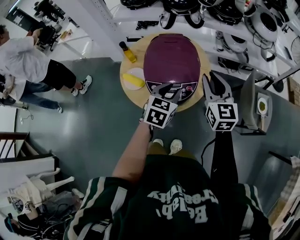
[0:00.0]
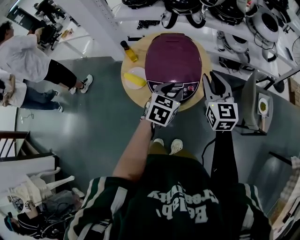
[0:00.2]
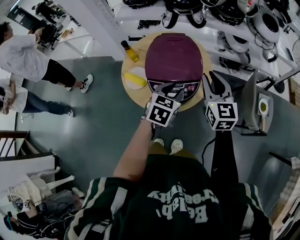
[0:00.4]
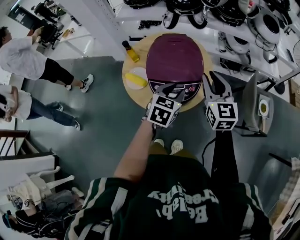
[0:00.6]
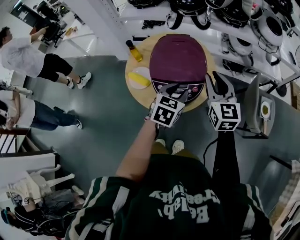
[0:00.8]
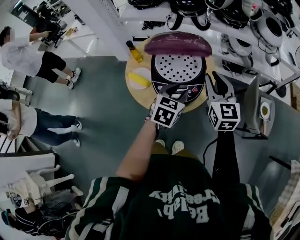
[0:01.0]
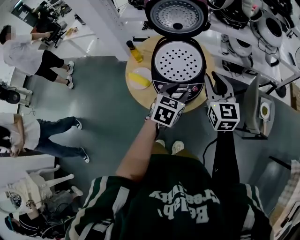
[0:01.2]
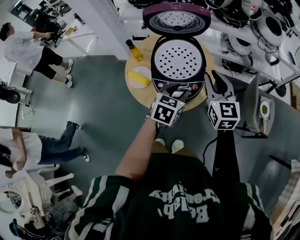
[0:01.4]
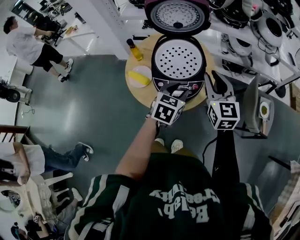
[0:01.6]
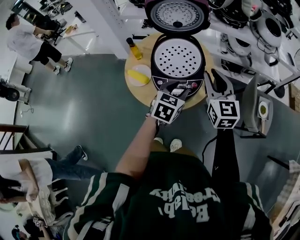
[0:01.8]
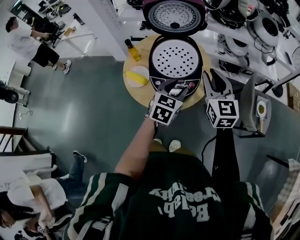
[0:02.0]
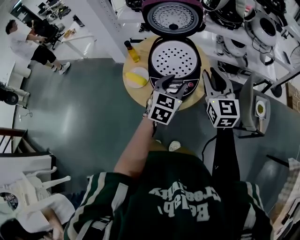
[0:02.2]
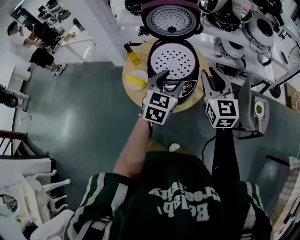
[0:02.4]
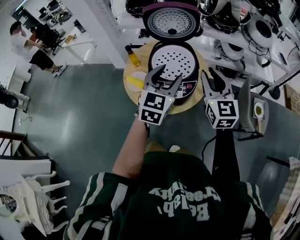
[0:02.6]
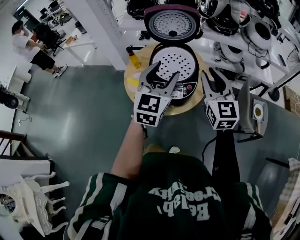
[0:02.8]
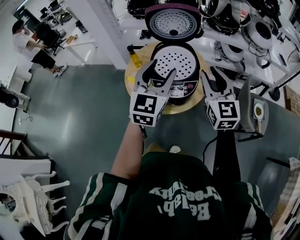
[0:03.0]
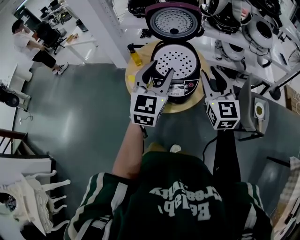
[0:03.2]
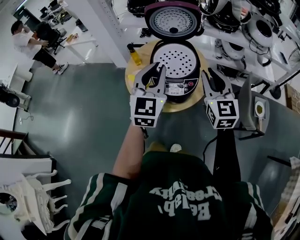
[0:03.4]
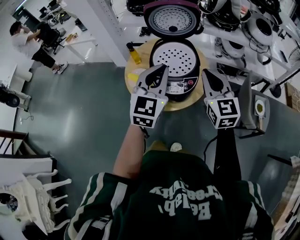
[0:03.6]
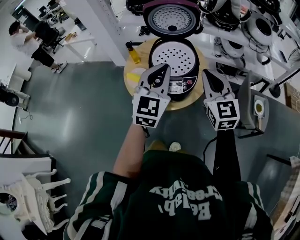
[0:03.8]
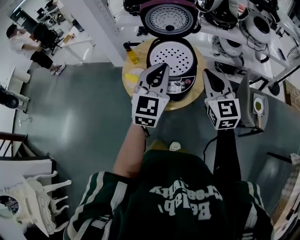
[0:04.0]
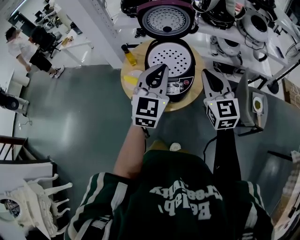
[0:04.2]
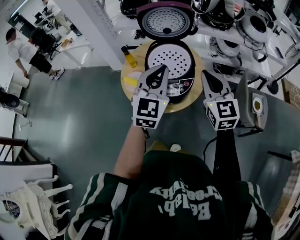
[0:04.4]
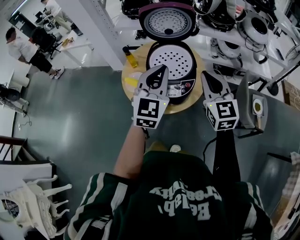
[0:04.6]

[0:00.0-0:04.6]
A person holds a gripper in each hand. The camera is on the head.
0:00.0 to 0:01.6: The grippers move only a little.
0:01.6 to 0:03.0: The right gripper travels upward by about 10 cm, while the left gripper travels upward by approximately 20 cm, and angles its fingers upward, by roughly 30 degrees.
0:03.0 to 0:04.6: The left gripper closes up. Meanwhile the right gripper closes.

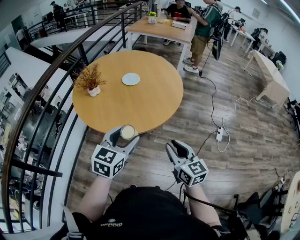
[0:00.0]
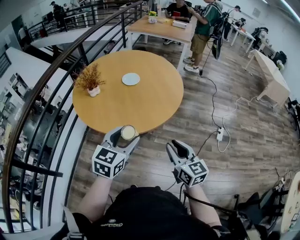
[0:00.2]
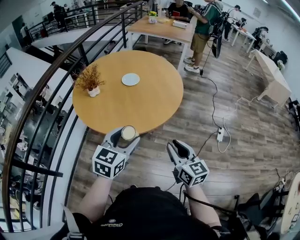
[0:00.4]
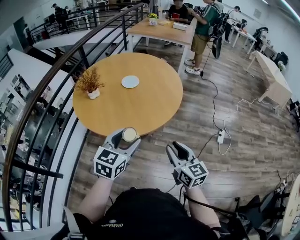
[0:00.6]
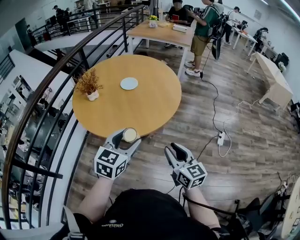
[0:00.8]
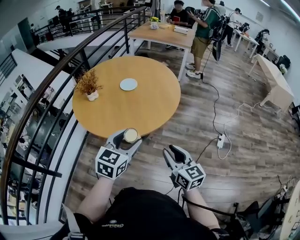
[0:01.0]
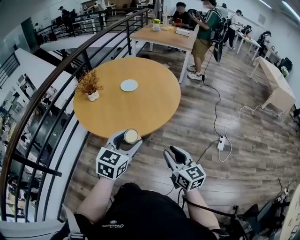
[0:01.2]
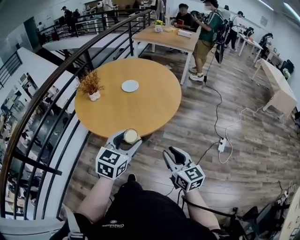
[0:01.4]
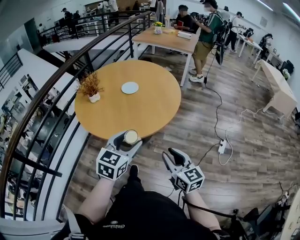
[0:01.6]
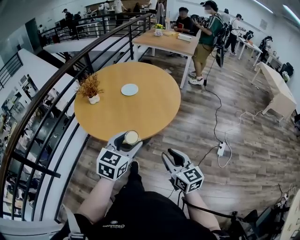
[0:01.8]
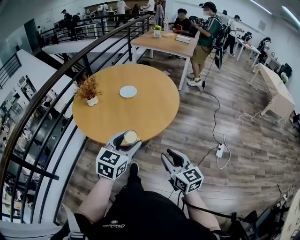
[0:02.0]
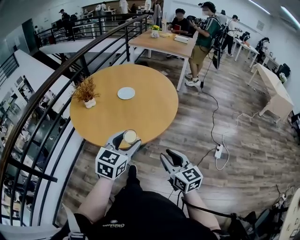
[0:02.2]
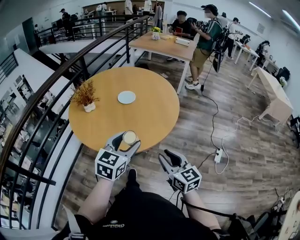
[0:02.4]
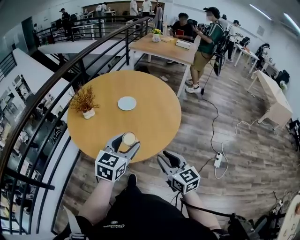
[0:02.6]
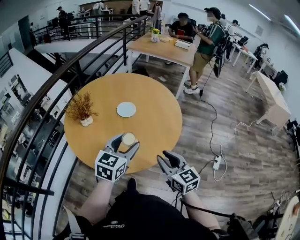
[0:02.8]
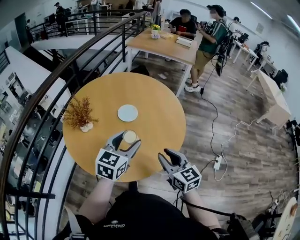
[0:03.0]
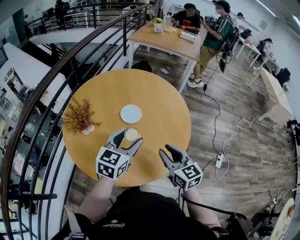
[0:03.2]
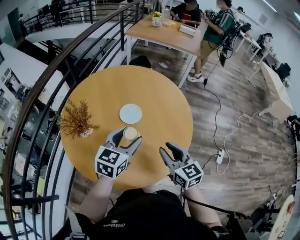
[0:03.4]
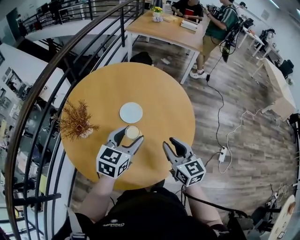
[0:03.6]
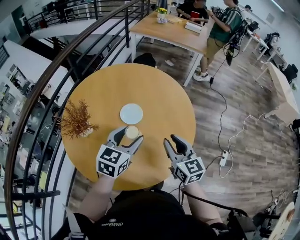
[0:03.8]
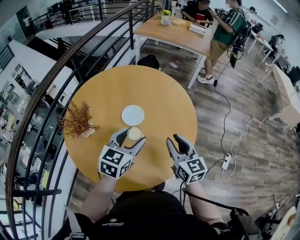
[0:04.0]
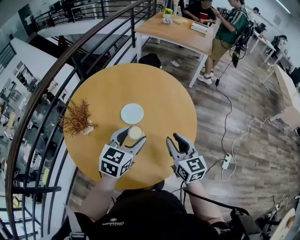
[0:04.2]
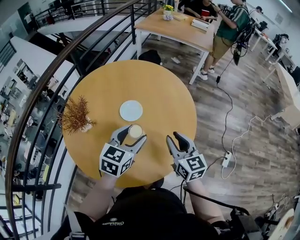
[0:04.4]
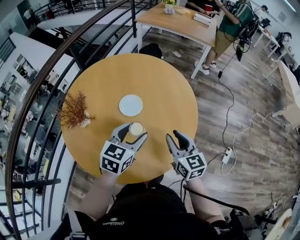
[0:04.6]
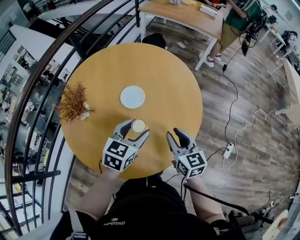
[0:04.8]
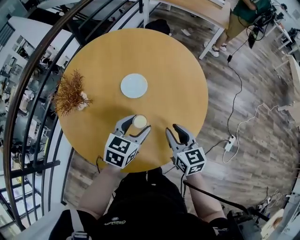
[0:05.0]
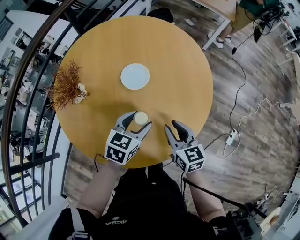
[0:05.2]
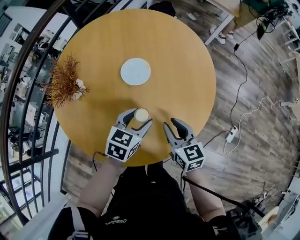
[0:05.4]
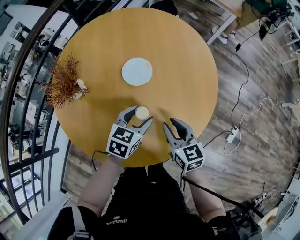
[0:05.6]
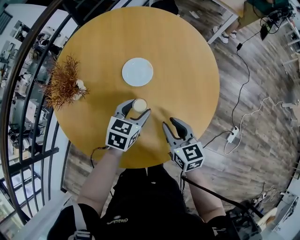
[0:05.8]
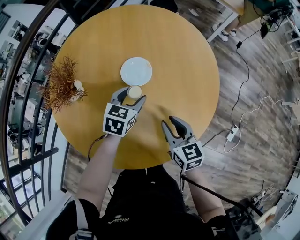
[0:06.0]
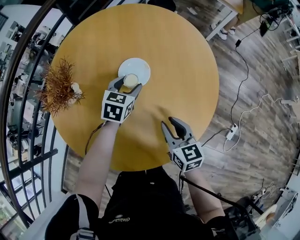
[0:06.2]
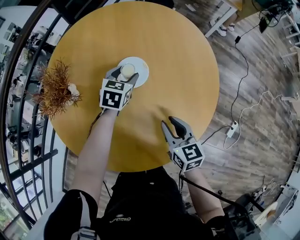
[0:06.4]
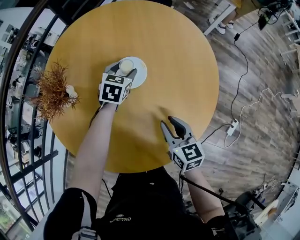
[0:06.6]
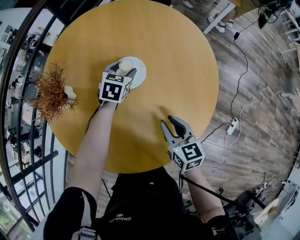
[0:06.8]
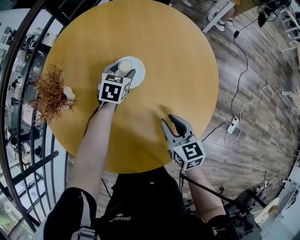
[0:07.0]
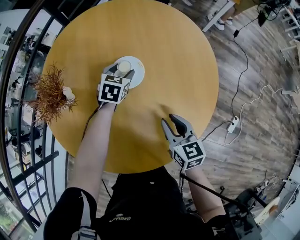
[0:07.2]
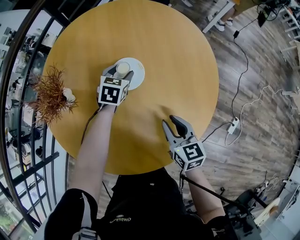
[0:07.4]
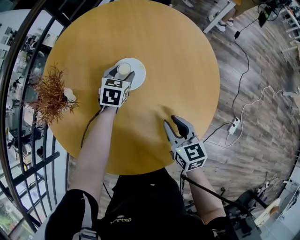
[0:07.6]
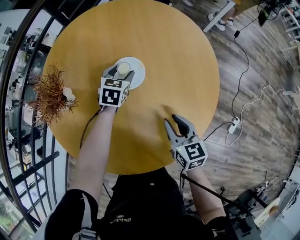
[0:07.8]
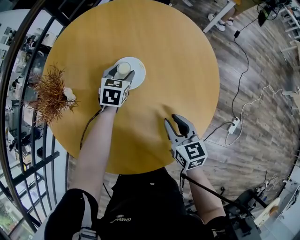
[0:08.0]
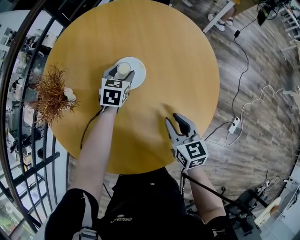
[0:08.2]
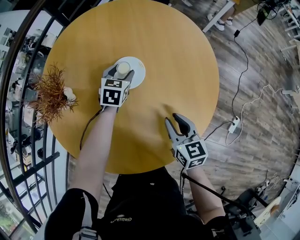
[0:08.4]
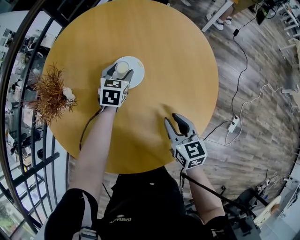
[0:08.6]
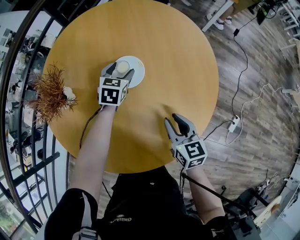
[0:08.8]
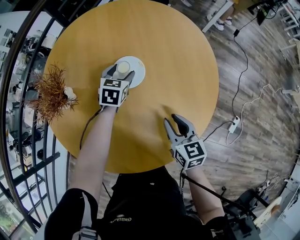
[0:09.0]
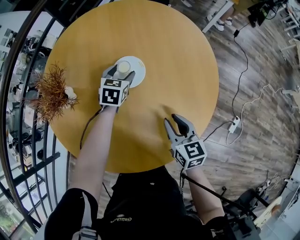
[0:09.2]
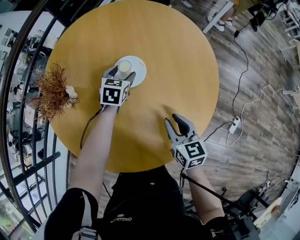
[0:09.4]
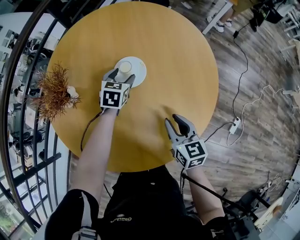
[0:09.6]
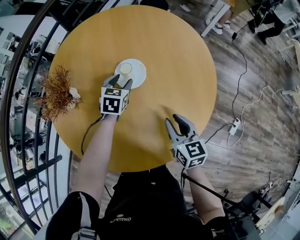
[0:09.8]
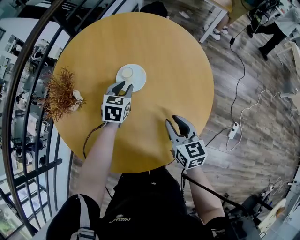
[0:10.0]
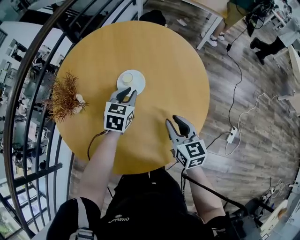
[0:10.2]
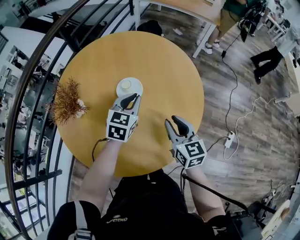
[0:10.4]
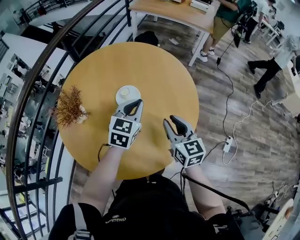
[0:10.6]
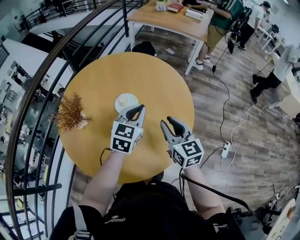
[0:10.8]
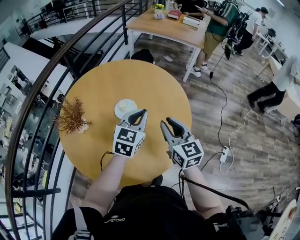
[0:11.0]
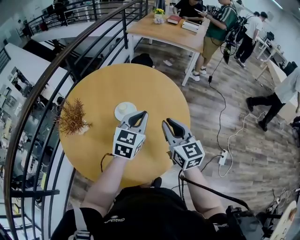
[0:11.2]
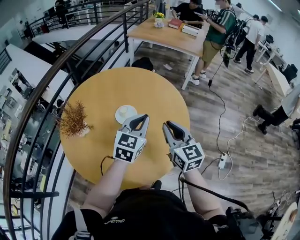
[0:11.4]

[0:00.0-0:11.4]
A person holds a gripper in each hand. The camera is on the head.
0:00.0 to 0:01.4: The grippers both shift to the right by roughly 10 cm.
0:01.4 to 0:02.8: The grippers both shift forward by some 20 cm.
0:02.8 to 0:04.2: The two grippers go some 20 cm forward.
0:04.2 to 0:05.6: The grippers both shift downward by some 15 cm.
0:05.6 to 0:07.2: The left gripper shifts roughly 20 cm forward, while the right gripper changes place by some 5 cm.
0:07.2 to 0:08.6: The grippers move only a little.
0:08.6 to 0:10.0: The left gripper heads backward, covering approximately 5 cm, and closes its fingers.
0:10.0 to 0:11.4: The left gripper shifts roughly 30 cm upward, backward and to the right, turns by about 30 degrees, and closes its fingers; the right gripper goes some 20 cm upward, and swivels roughly 20 degrees.

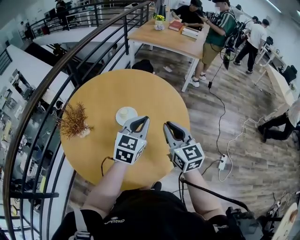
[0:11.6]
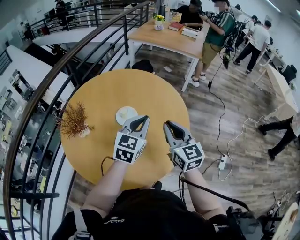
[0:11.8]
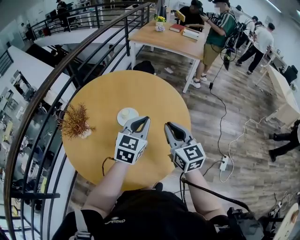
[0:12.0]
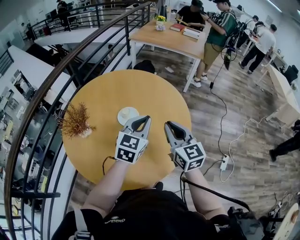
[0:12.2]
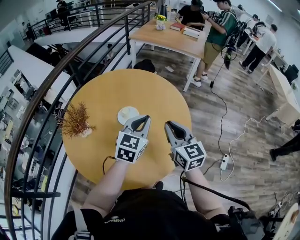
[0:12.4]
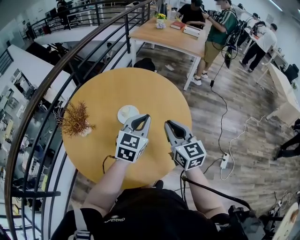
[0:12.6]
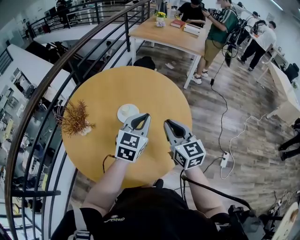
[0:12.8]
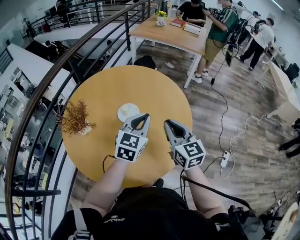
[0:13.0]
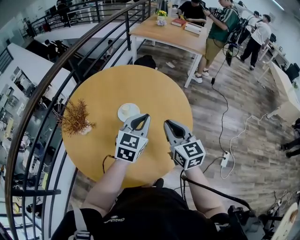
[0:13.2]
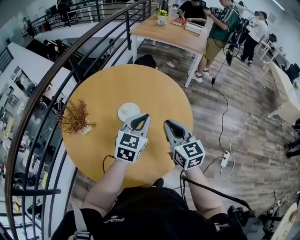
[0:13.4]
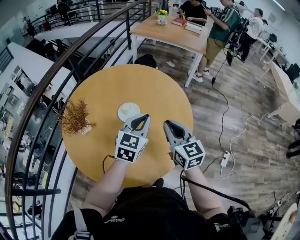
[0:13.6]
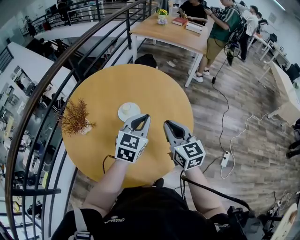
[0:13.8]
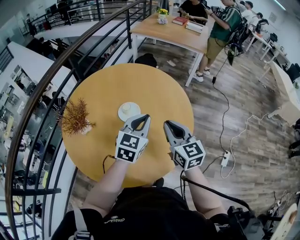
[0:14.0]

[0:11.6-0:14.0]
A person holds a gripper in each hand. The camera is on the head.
0:11.6 to 0:12.8: The two grippers keep their place.
0:12.8 to 0:14.0: There are only small adjustments of the grippers.

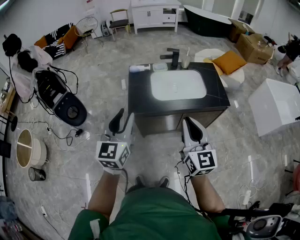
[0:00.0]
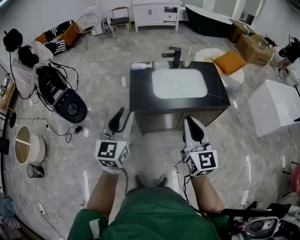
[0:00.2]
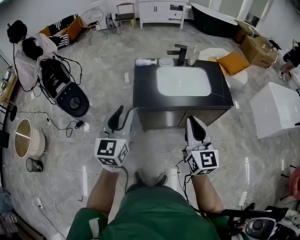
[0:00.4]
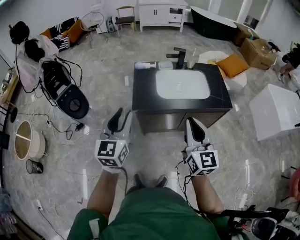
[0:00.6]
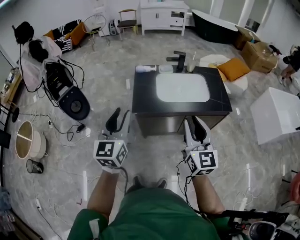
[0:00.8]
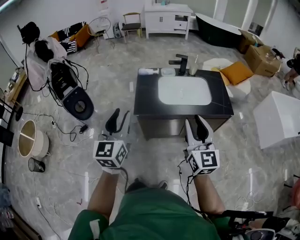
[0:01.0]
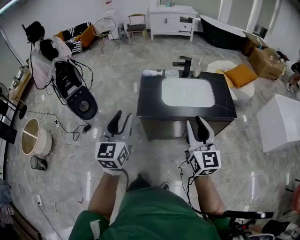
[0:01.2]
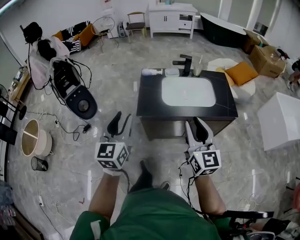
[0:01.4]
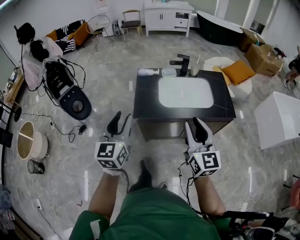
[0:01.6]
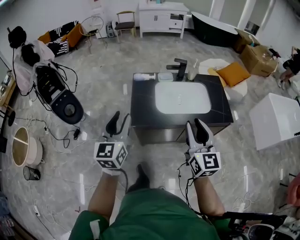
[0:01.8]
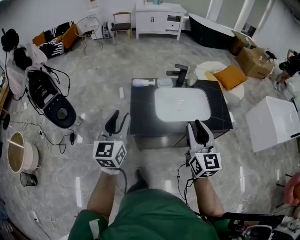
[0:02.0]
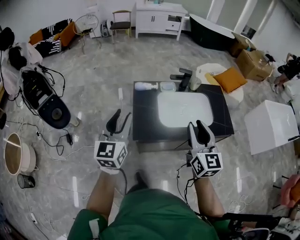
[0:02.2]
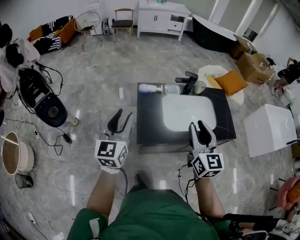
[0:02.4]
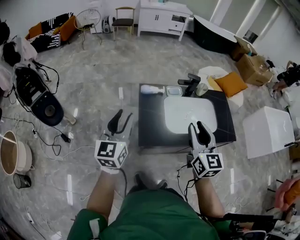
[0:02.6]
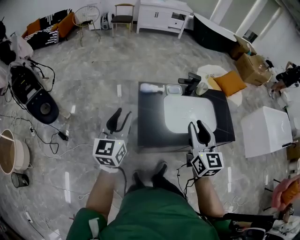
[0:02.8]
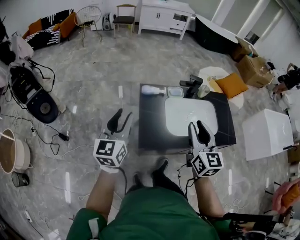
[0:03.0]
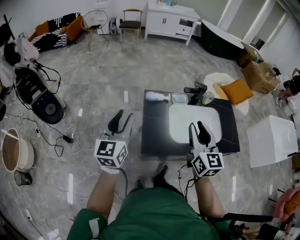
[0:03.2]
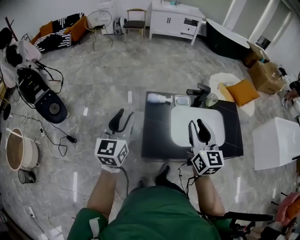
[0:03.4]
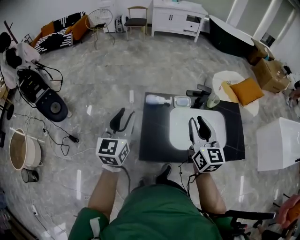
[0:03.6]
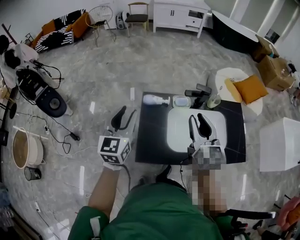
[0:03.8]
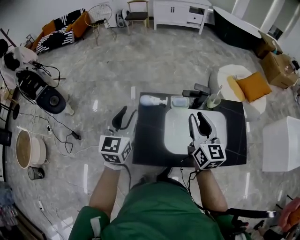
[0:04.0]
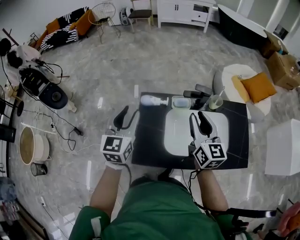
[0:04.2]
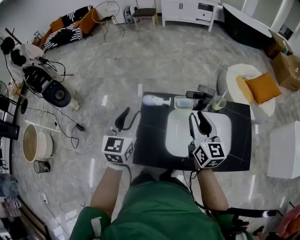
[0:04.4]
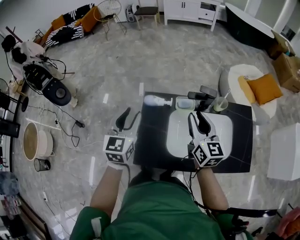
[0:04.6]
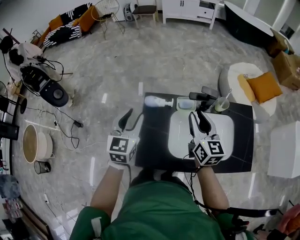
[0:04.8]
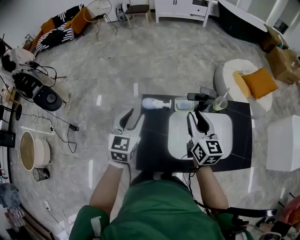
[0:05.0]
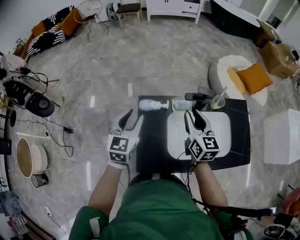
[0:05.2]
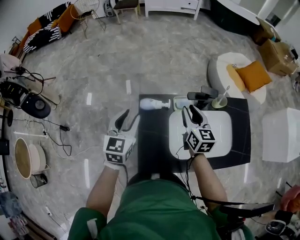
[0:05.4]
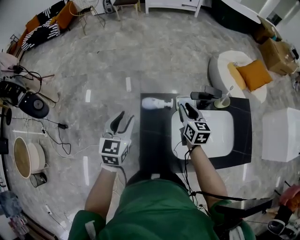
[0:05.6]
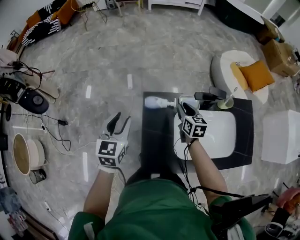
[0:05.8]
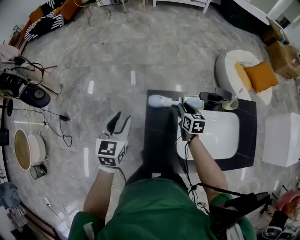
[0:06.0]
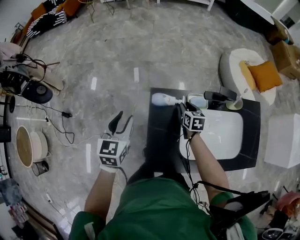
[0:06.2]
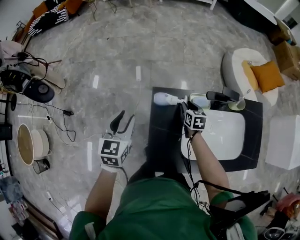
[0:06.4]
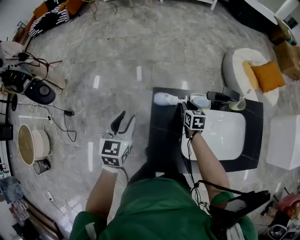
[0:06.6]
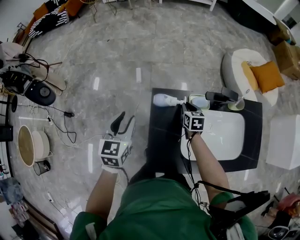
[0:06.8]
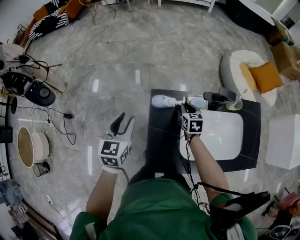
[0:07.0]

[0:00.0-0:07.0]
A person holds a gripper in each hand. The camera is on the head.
0:00.0 to 0:01.4: The right gripper opens.
0:01.4 to 0:02.8: Both grippers move forward and to the left, approximately 35 cm.
0:02.8 to 0:04.2: The two grippers go some 25 cm forward and to the right.
0:04.2 to 0:05.6: Both grippers travel together forward, downward and to the left, some 20 cm. The right gripper changes its angle by some 20 degrees.
0:05.6 to 0:07.0: The left gripper changes place by some 5 cm. Meanwhile the right gripper travels downward by roughly 10 cm.
